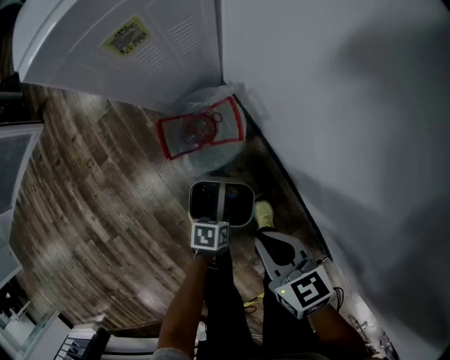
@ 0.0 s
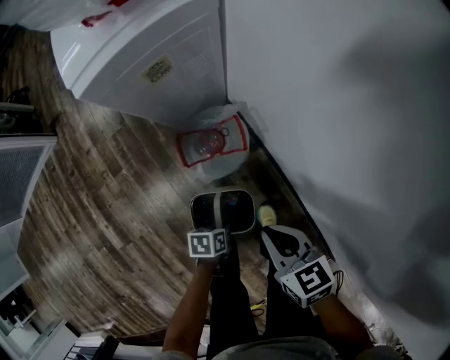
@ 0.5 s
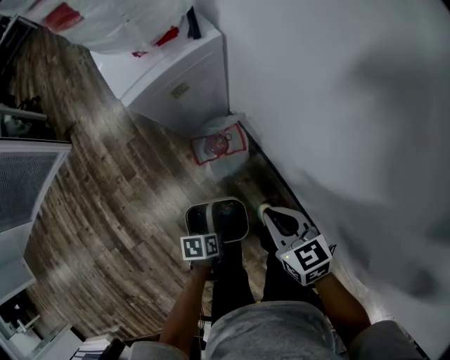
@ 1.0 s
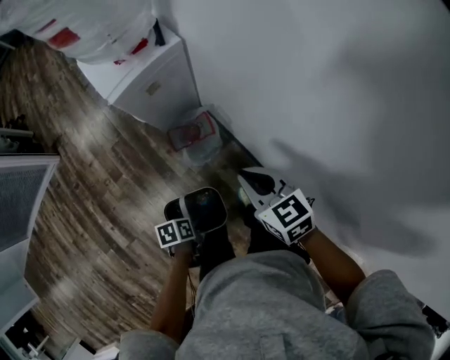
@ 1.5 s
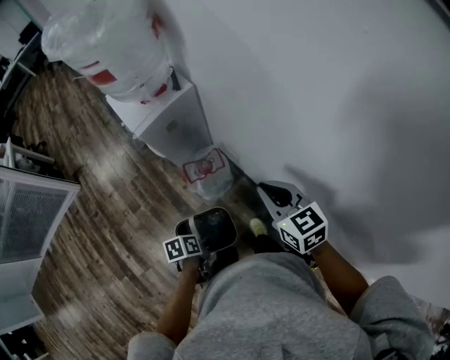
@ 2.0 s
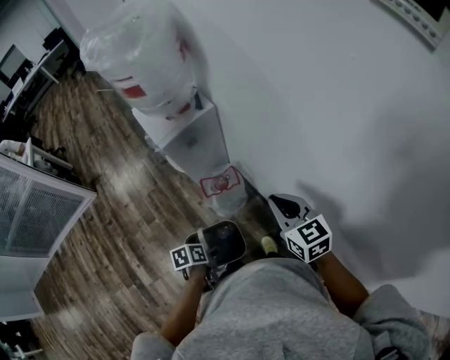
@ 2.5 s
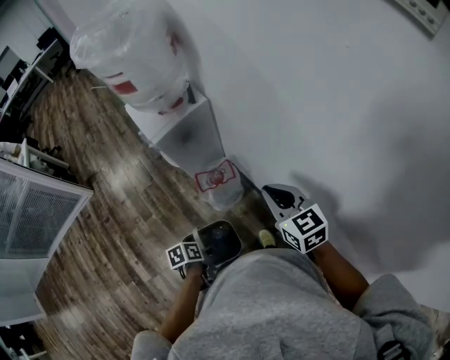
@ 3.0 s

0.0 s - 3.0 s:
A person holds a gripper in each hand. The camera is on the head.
0.0 s - 1.5 s: Both grippers travel together upward, about 30 cm.
1.5 s - 3.0 s: Both grippers travel together upward, approximately 10 cm.

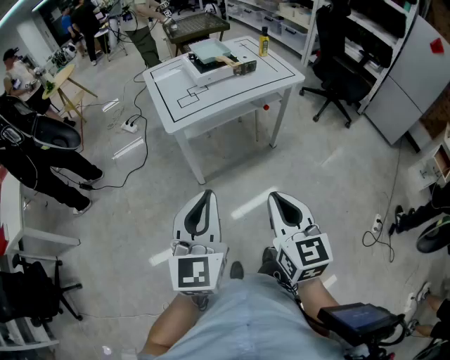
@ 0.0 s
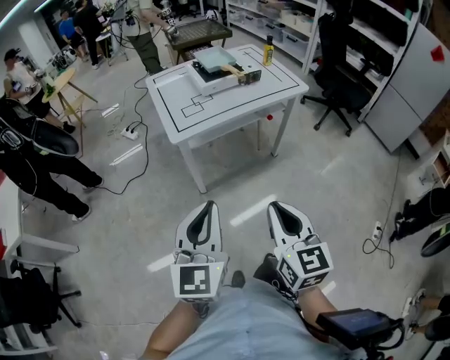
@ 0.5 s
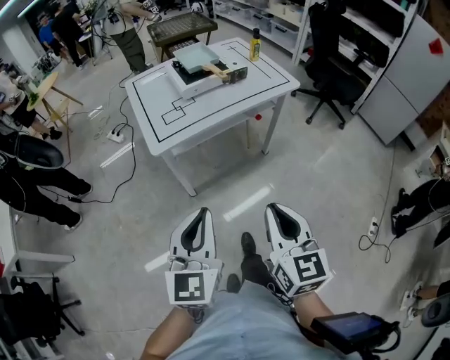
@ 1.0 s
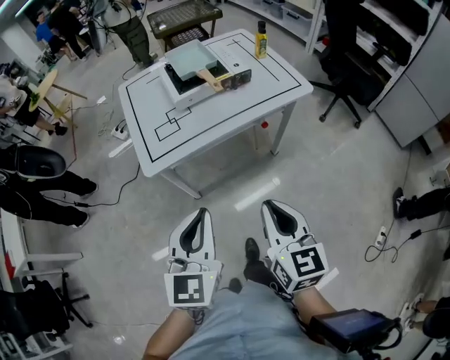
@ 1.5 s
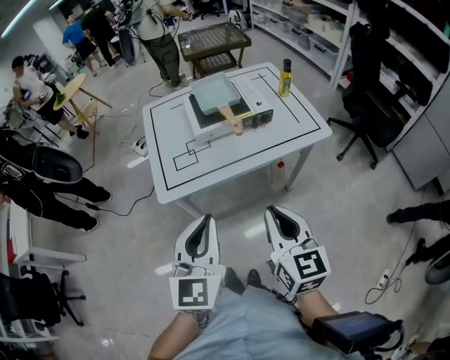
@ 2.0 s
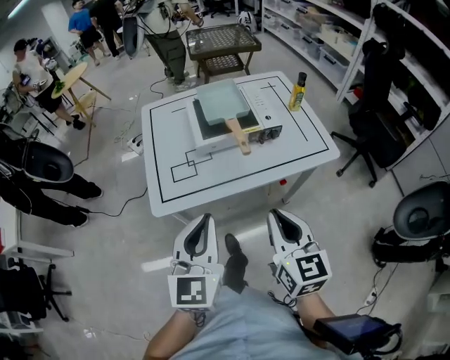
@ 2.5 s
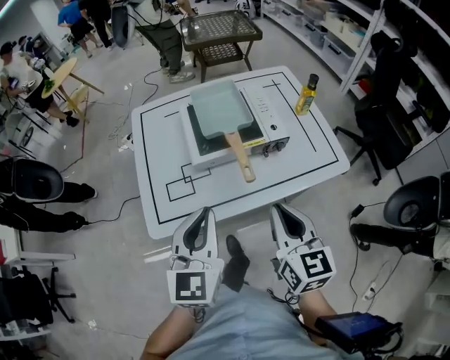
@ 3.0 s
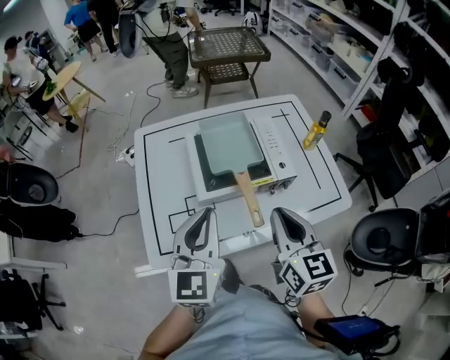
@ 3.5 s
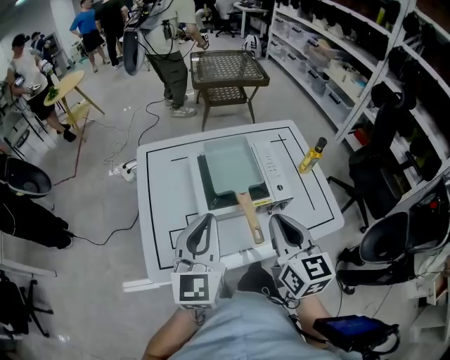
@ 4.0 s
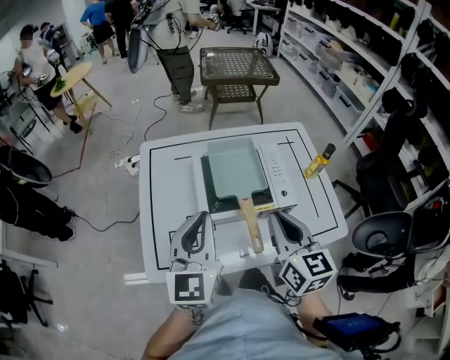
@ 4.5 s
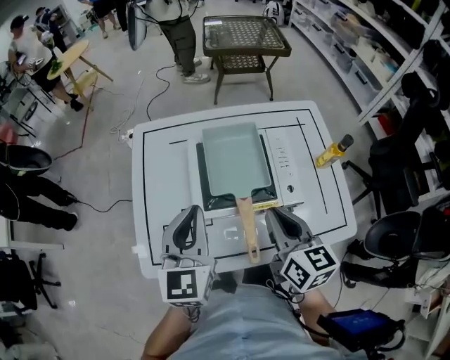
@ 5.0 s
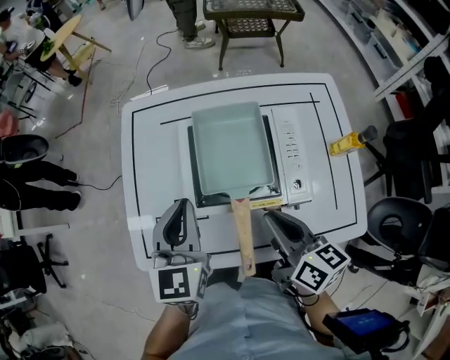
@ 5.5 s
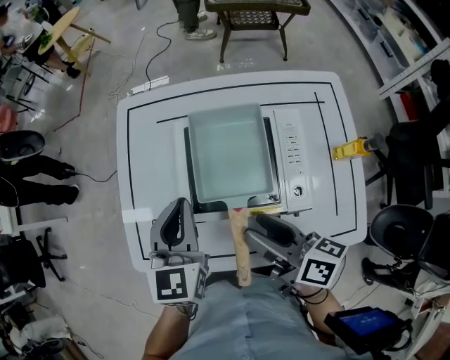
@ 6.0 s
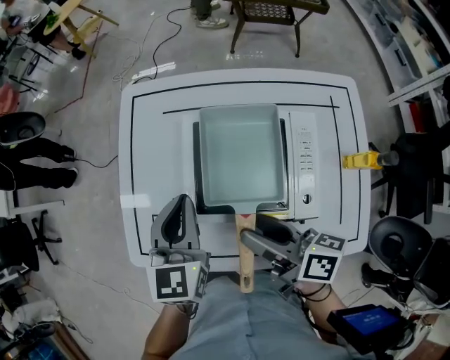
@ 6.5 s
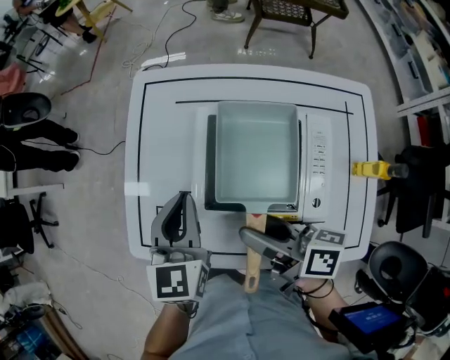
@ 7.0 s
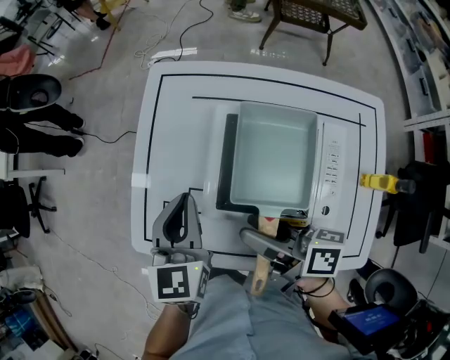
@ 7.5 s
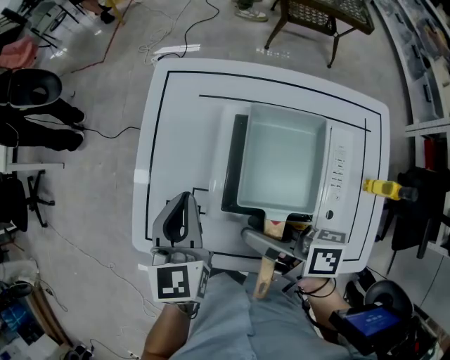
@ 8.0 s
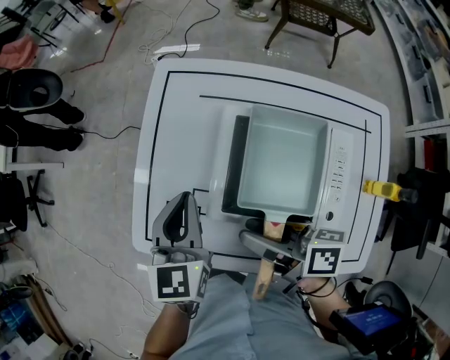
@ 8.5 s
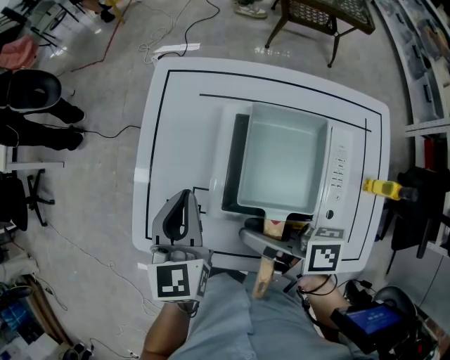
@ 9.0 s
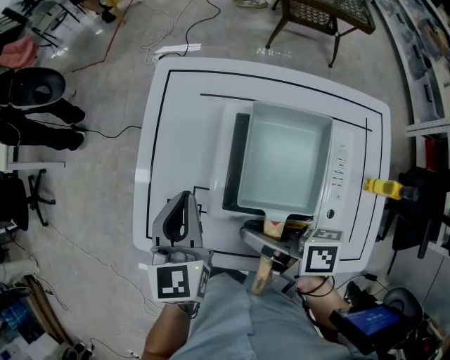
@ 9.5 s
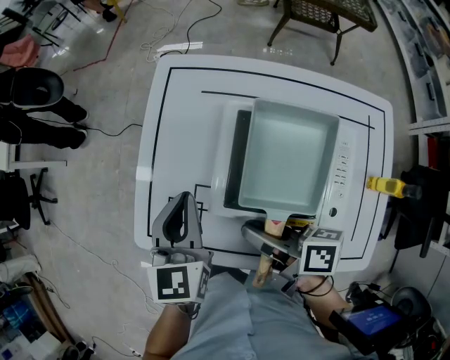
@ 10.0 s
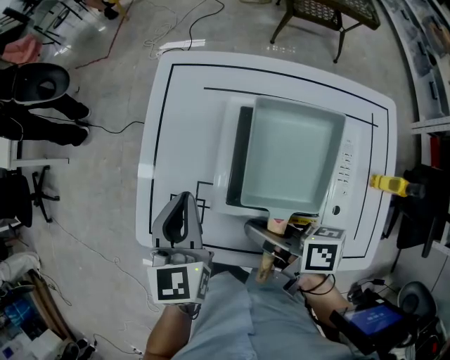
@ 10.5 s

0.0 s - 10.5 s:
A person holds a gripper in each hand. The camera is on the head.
0.0 s - 2.0 s: Both grippers move forward, approximately 35 cm.
2.0 s - 4.0 s: Both grippers travel together forward, about 35 cm.
4.0 s - 6.5 s: The right gripper shifts by some 20 cm, turns by approximately 70 degrees, and opens up, while the left gripper moves some 20 cm, and rotates some 30 degrees.
6.5 s - 8.5 s: Both grippers move to the left, approximately 5 cm.
8.5 s - 10.5 s: The right gripper closes up.

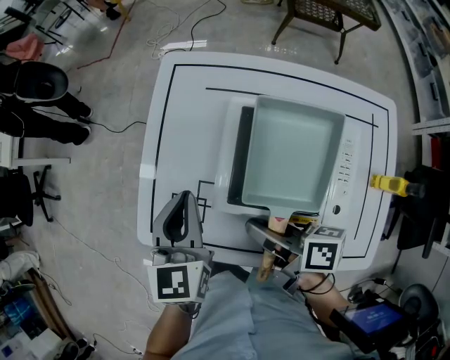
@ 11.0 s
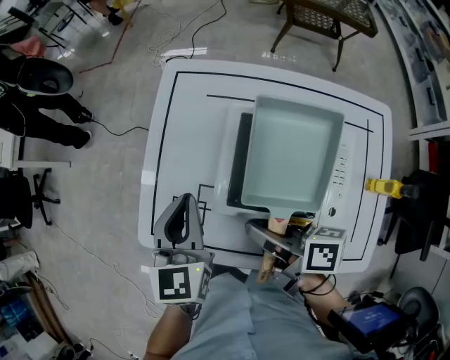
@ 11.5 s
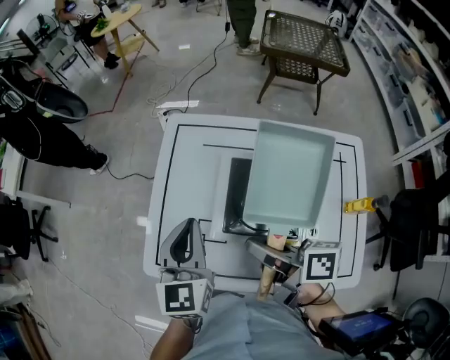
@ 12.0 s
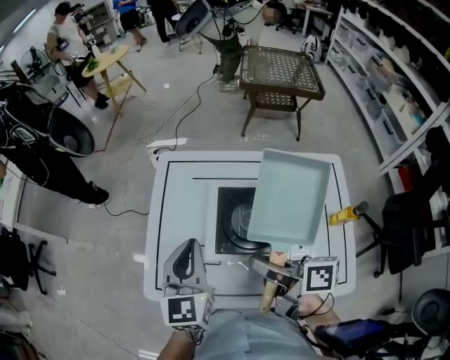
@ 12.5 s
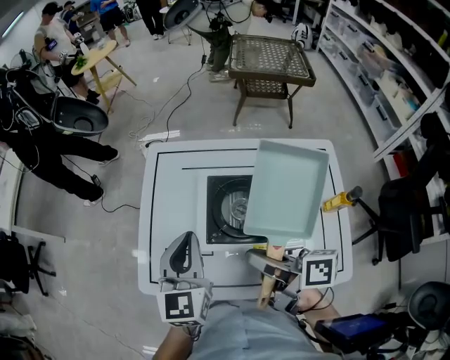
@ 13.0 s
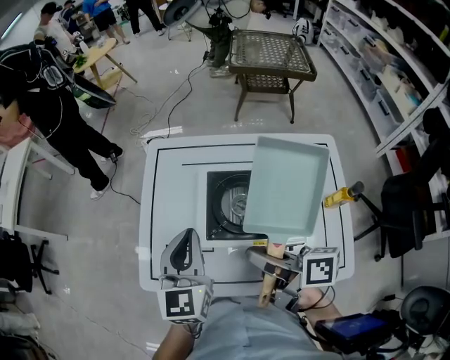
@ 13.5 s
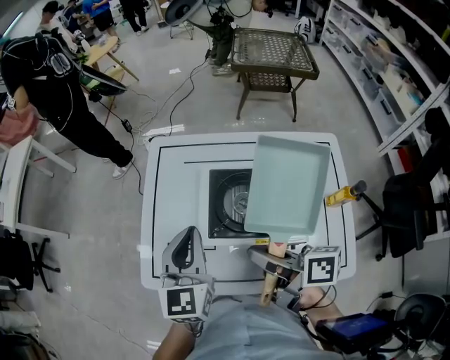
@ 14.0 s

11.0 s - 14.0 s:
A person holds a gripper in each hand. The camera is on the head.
11.0 s - 12.5 s: Both grippers move upward, approximately 10 cm.
12.5 s - 14.0 s: The grippers stay close to where they were, moving slightly.

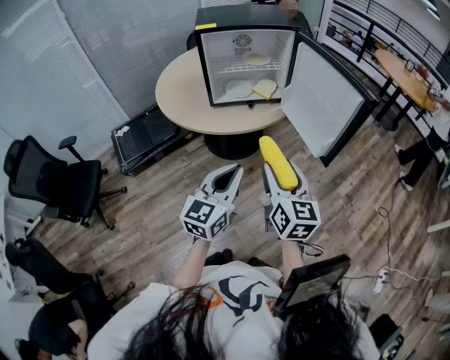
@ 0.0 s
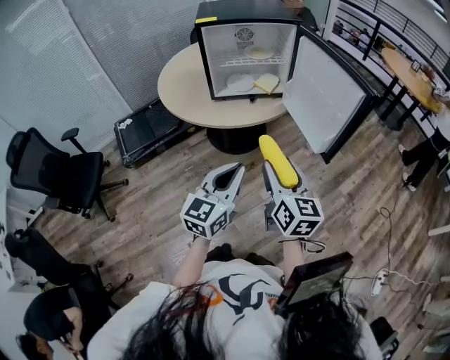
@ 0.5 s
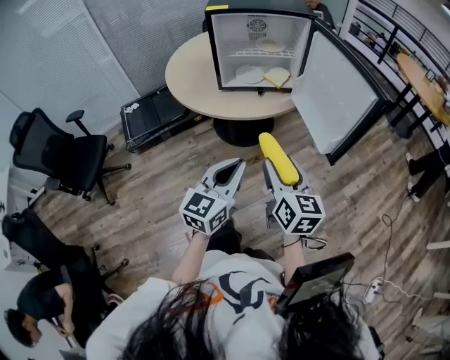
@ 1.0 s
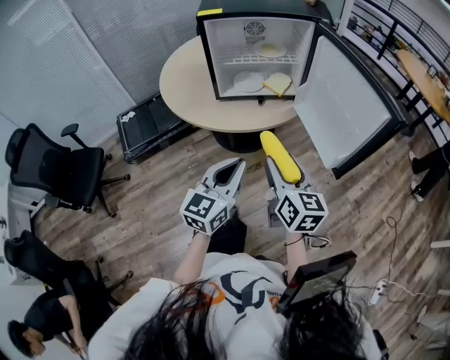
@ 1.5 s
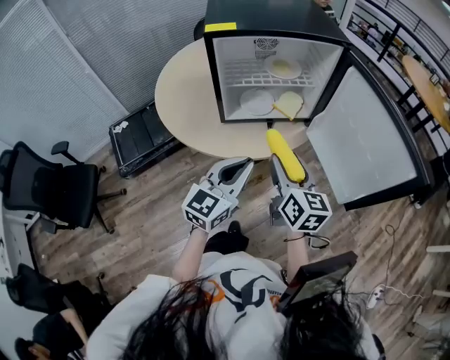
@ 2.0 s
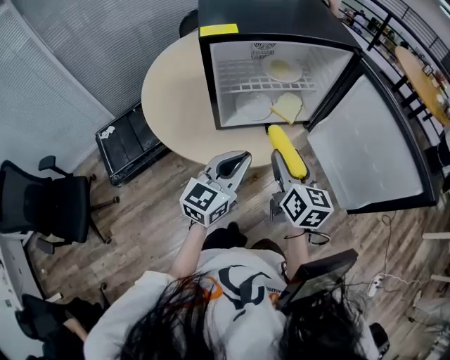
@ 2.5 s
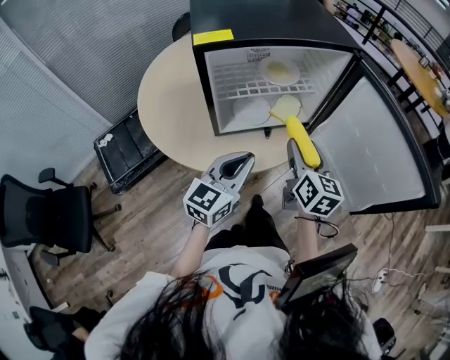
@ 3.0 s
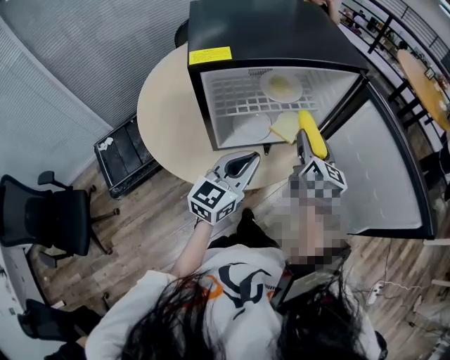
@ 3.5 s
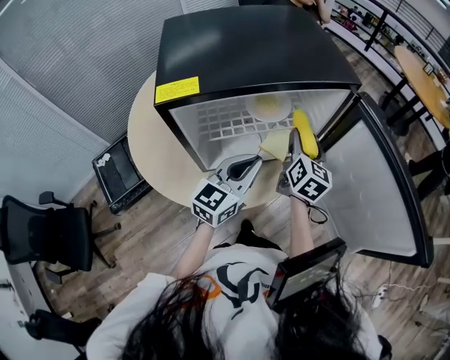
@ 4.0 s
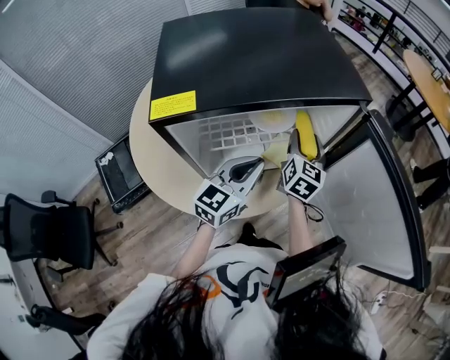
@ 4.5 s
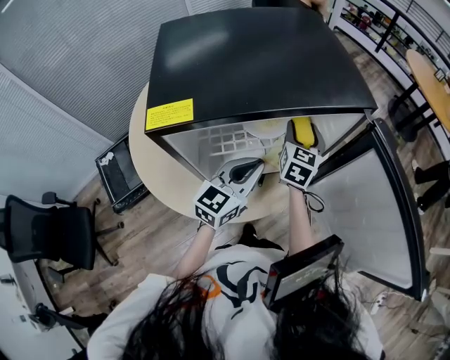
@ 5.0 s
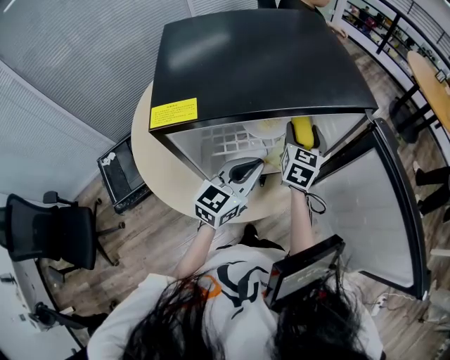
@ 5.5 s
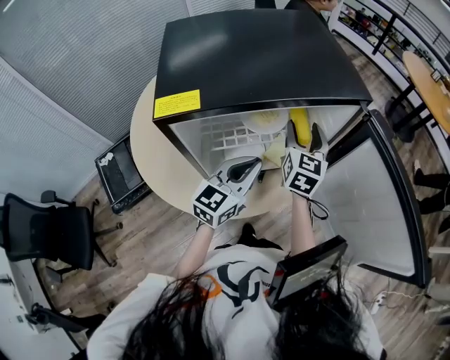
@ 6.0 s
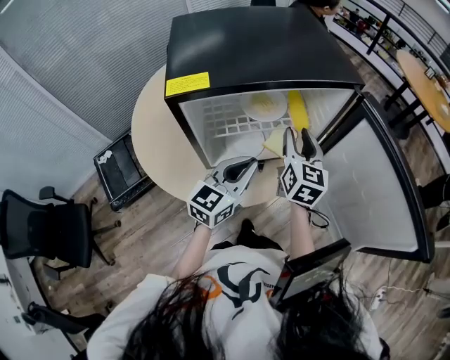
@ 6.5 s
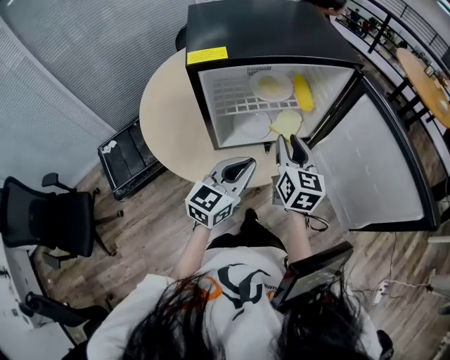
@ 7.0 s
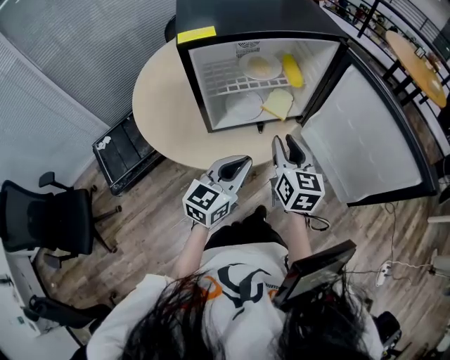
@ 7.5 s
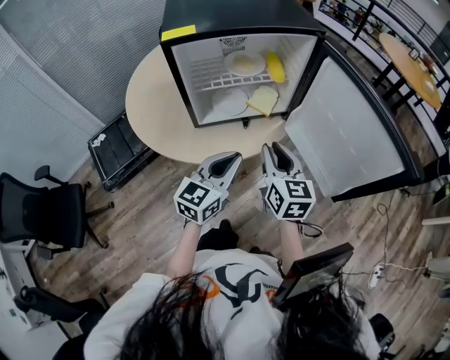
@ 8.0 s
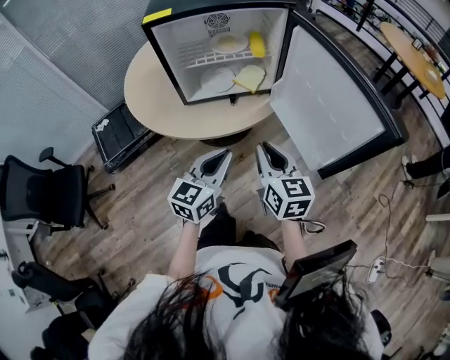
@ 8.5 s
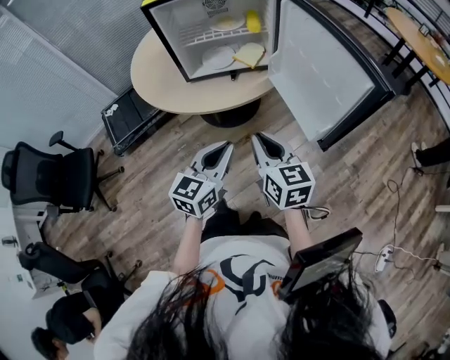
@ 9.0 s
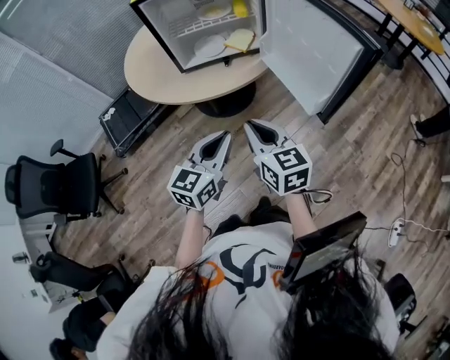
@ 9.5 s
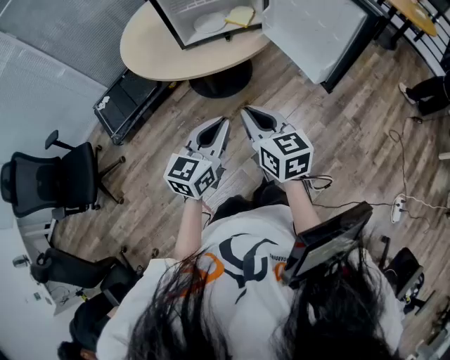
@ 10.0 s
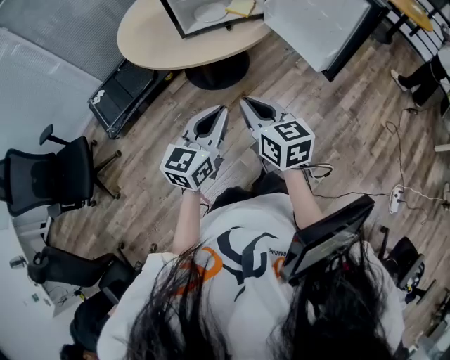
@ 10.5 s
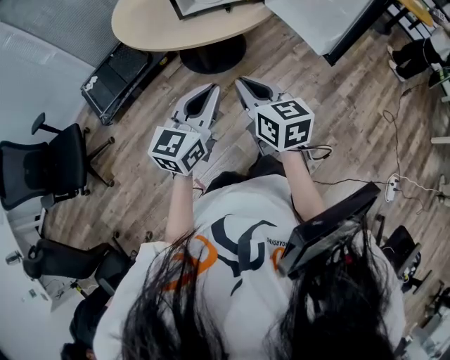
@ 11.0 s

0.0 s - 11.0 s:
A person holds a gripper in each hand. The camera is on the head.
0.0 s - 2.0 s: The grippers both shift forward by about 20 cm.
2.0 s - 3.5 s: Both grippers move forward, about 20 cm.
3.5 s - 5.5 s: The grippers both shift forward by roughly 15 cm.
5.5 s - 7.5 s: The two grippers go approximately 25 cm backward. The right gripper closes.
7.5 s - 9.0 s: The two grippers go roughly 20 cm backward and to the right. The right gripper turns by some 20 degrees, and closes its fingers.
9.0 s - 11.0 s: The right gripper goes approximately 15 cm to the left and backward, while the left gripper travels backward and to the left by approximately 15 cm.
